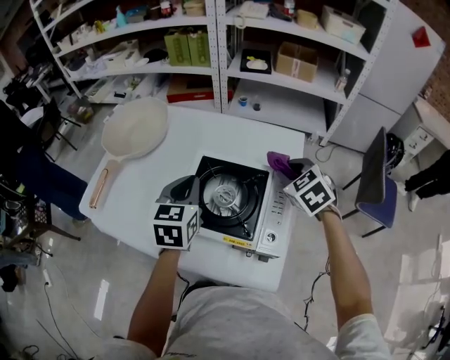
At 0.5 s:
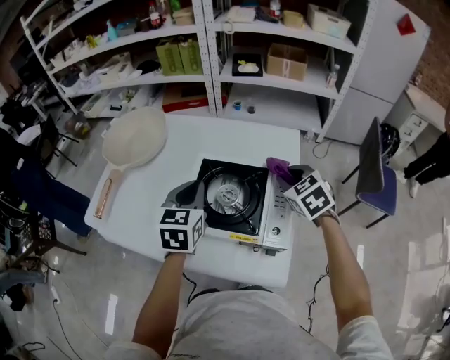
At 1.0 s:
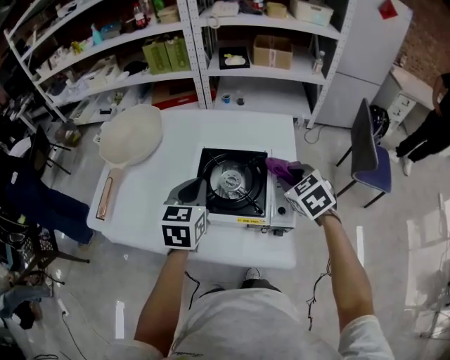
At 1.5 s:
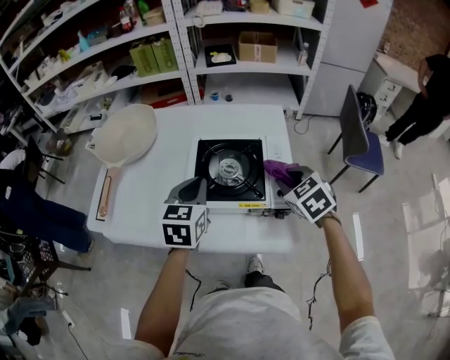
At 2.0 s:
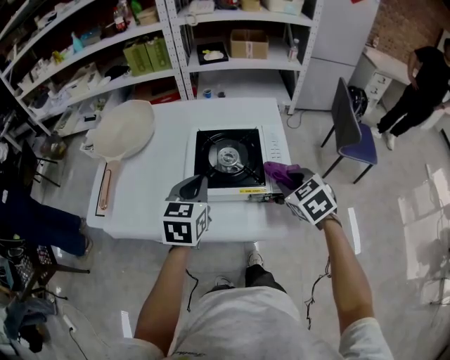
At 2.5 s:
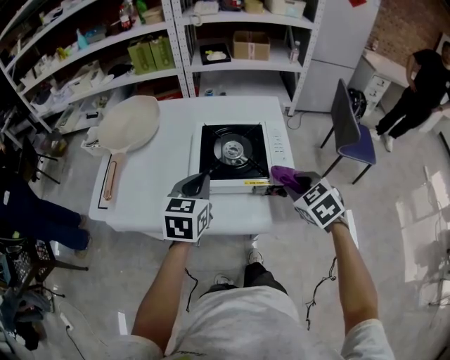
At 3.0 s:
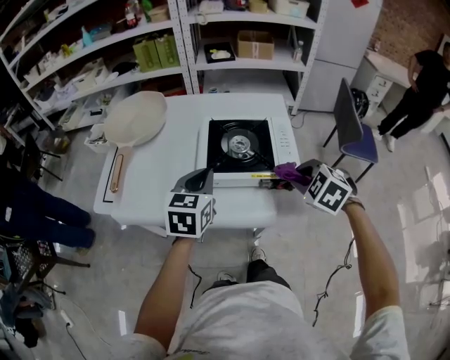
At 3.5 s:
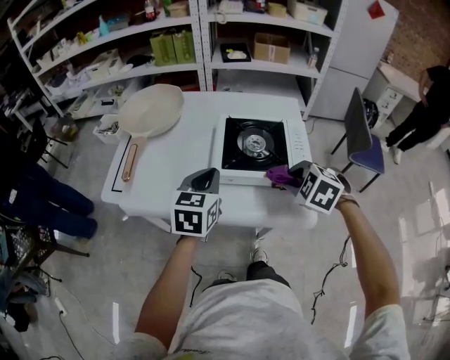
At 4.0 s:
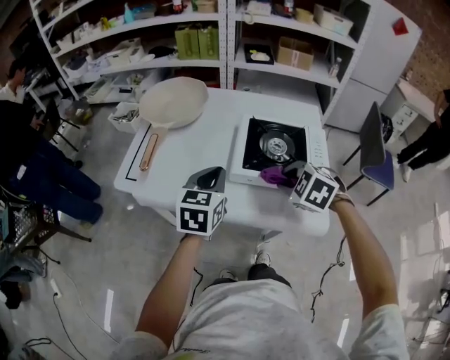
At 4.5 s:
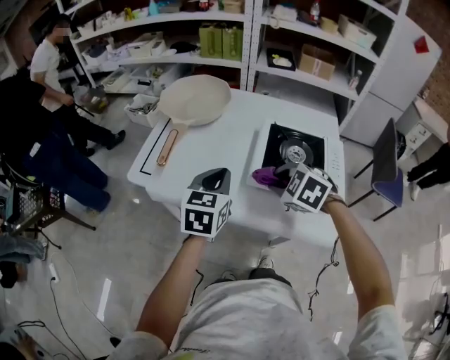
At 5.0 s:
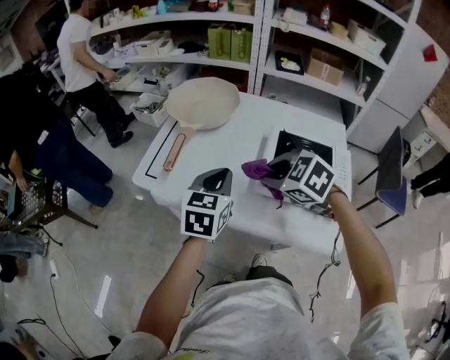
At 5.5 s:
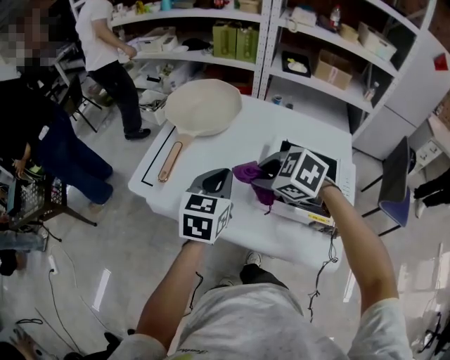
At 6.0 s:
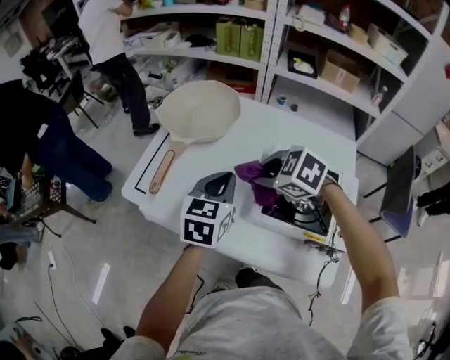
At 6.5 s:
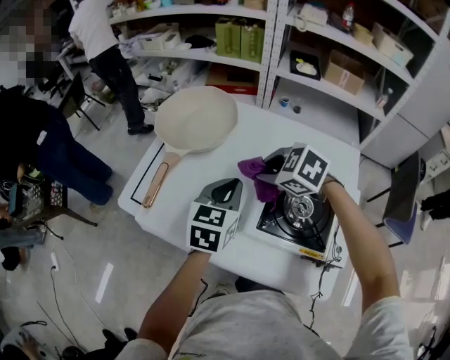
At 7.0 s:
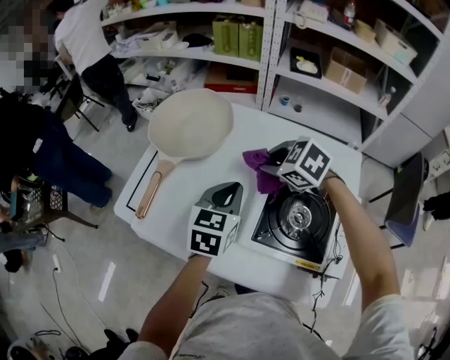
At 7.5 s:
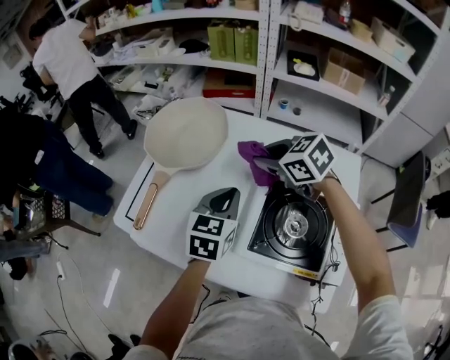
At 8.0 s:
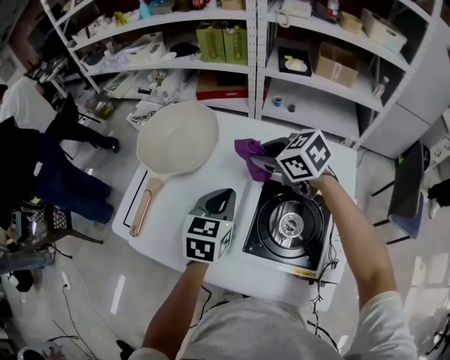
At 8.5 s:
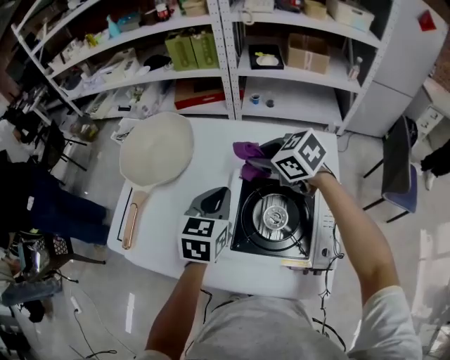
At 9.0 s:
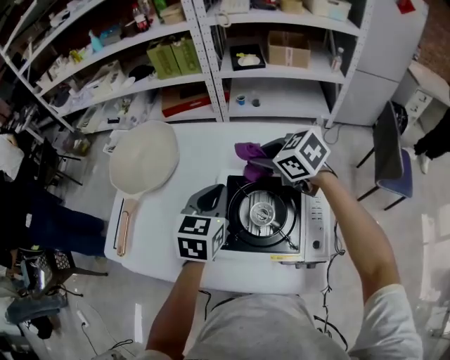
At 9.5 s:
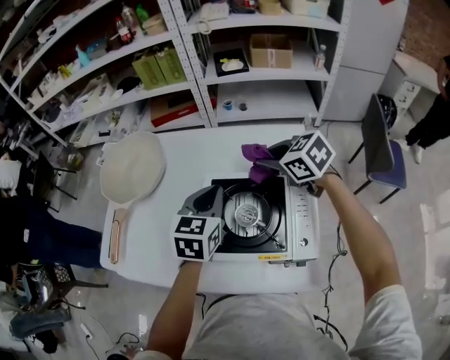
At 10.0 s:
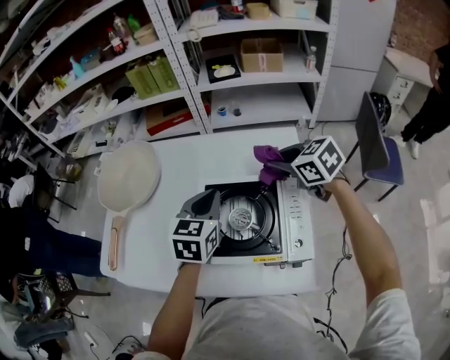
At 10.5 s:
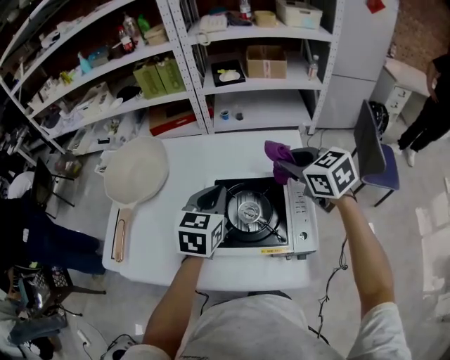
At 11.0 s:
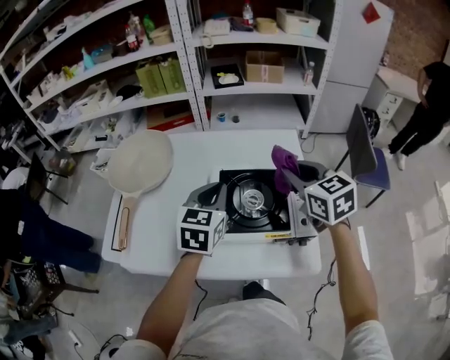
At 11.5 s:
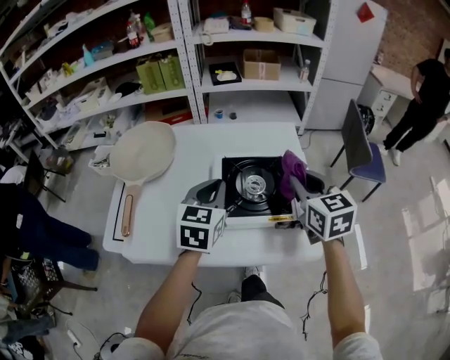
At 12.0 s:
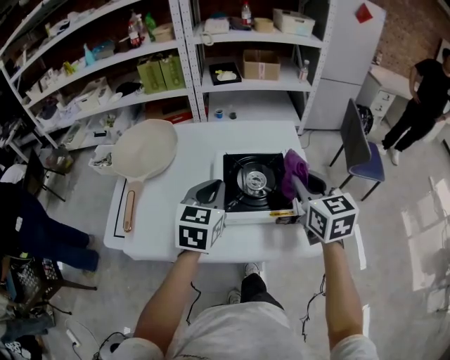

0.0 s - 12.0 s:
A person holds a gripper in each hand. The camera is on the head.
0.0 s - 2.0 s: The left gripper is displaced backward by roughly 10 cm, while the right gripper goes some 20 cm backward.
2.0 s - 4.0 s: Both grippers travel together to the left, some 15 cm. The right gripper rotates approximately 40 degrees.
4.0 s - 6.0 s: The left gripper heads forward, covering roughly 10 cm. The right gripper shifts approximately 20 cm forward and to the left, and turns by about 20 degrees.
6.0 s - 8.0 s: The right gripper moves forward and to the right, approximately 15 cm, and rotates approximately 30 degrees, while the left gripper heads to the right and forward, covering about 10 cm.
8.0 s - 10.0 s: The right gripper goes approximately 25 cm to the right and backward, and swivels about 20 degrees. Meanwhile the left gripper travels to the right by about 10 cm.
10.0 s - 12.0 s: The left gripper is displaced backward and to the left by some 15 cm. The right gripper heads backward and upward, covering approximately 20 cm, and changes its angle by roughly 40 degrees.

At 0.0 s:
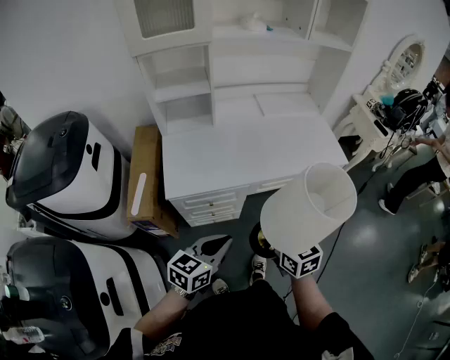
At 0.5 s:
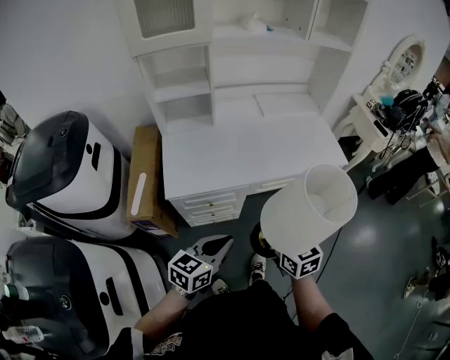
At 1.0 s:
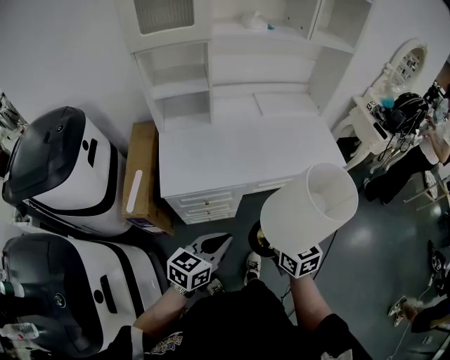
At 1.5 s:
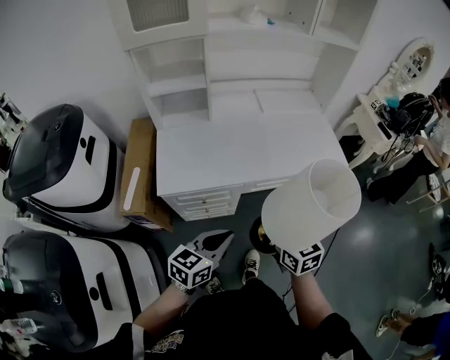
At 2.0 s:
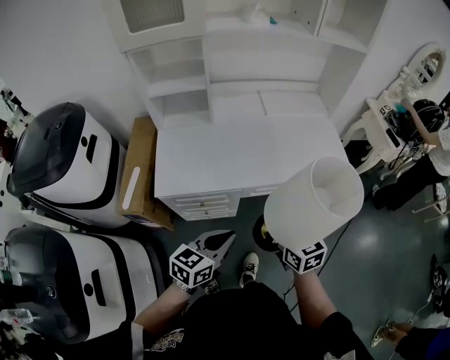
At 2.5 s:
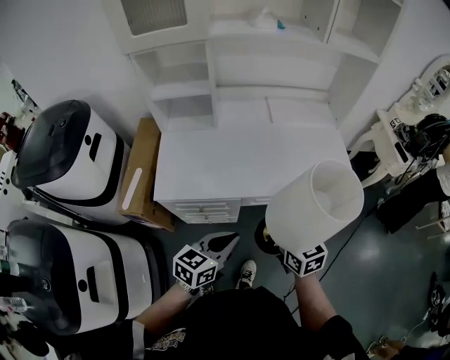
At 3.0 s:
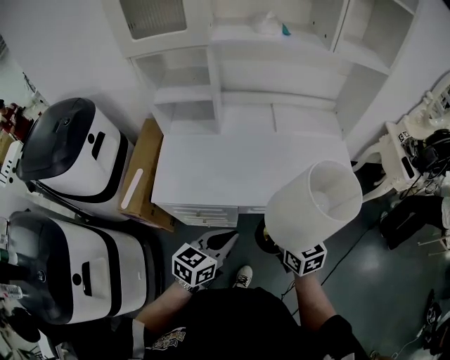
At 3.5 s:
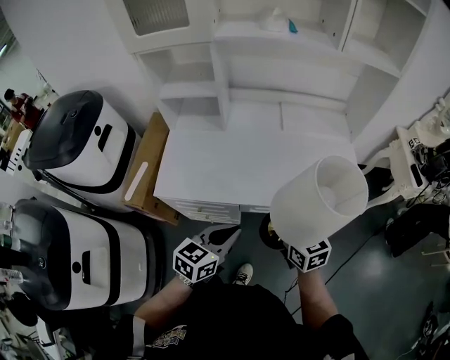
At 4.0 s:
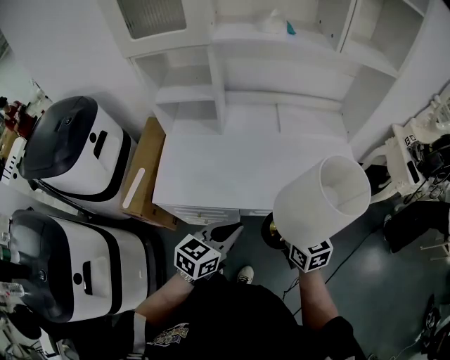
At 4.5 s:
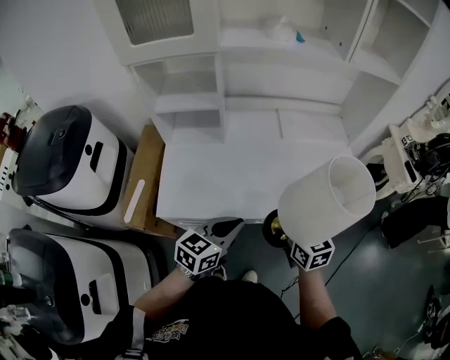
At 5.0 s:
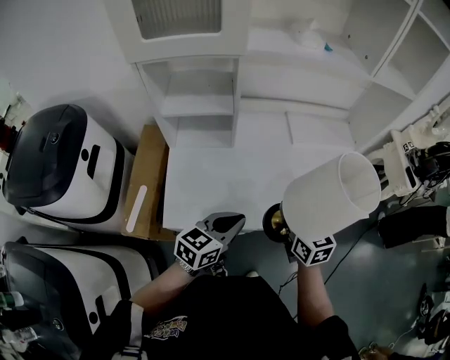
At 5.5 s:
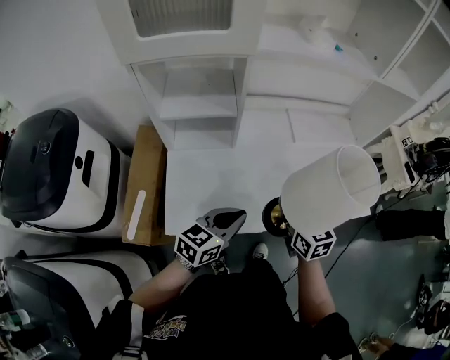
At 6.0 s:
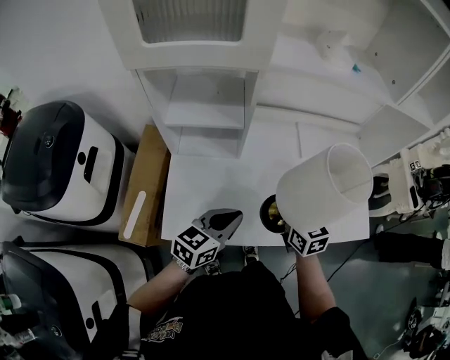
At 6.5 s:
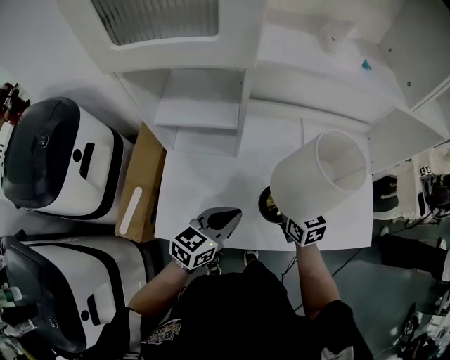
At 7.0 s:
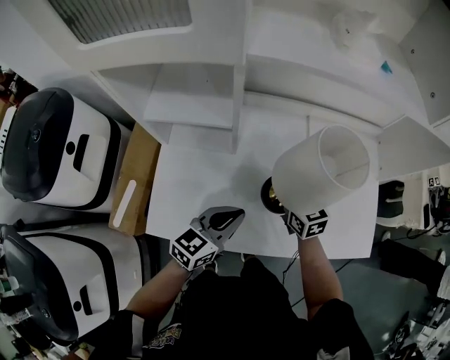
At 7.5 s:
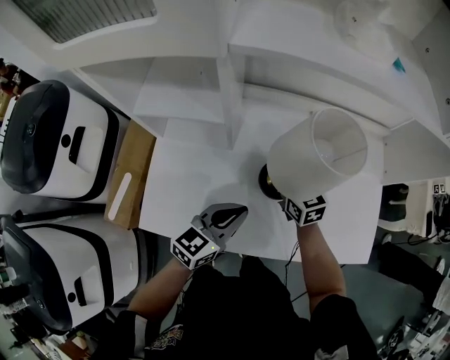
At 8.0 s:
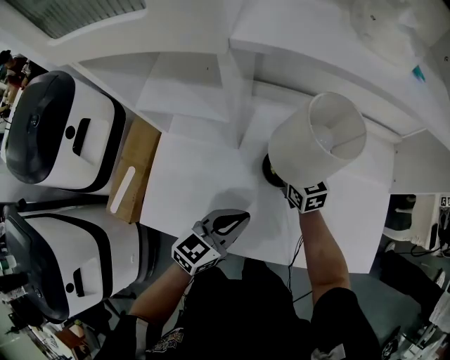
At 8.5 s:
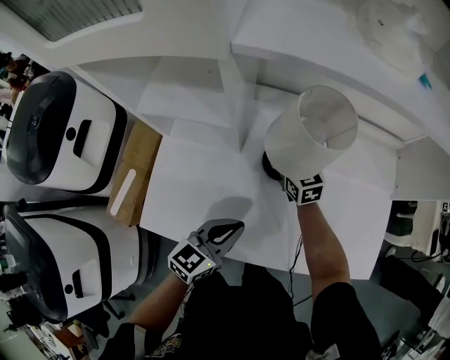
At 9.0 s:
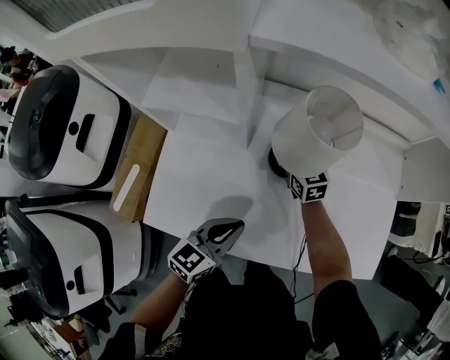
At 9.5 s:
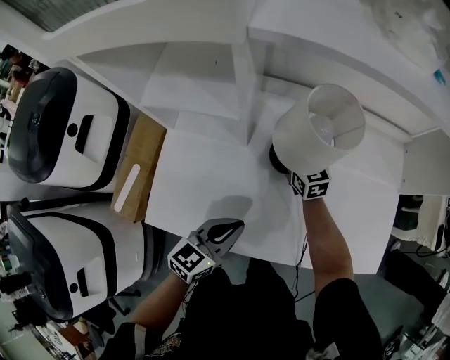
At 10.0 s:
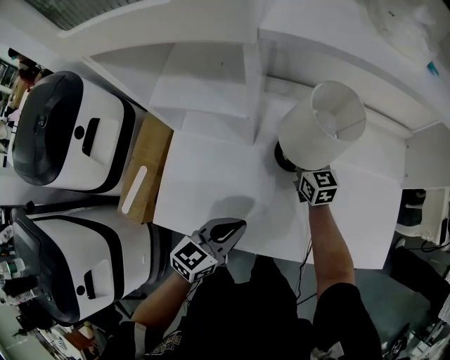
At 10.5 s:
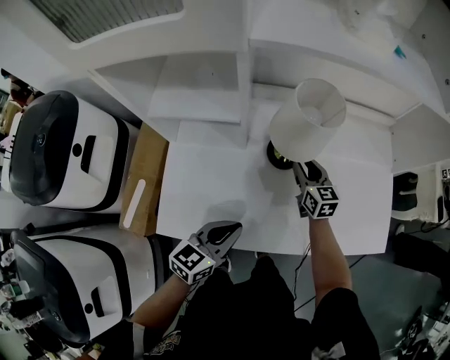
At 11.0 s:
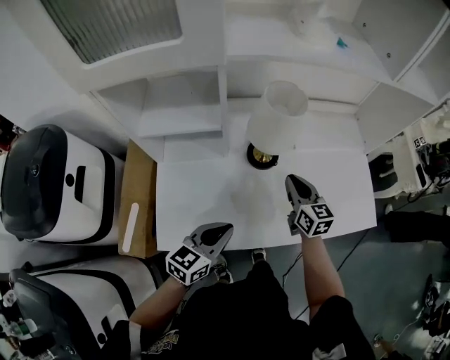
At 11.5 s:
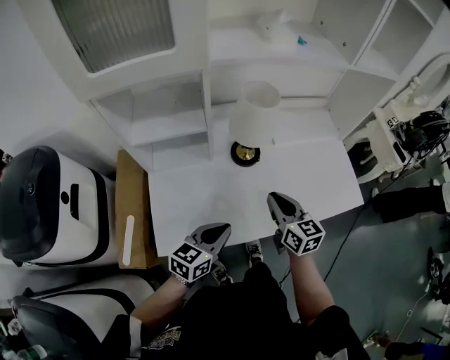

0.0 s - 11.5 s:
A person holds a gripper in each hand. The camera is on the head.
0.0 s - 2.0 s: The left gripper shifts approximately 10 cm to the right and forward. The right gripper travels forward and to the right by some 10 cm.
2.0 s - 4.0 s: The two grippers go some 15 cm forward and to the right.
4.0 s - 6.0 s: The two grippers go approximately 25 cm forward and to the left.
6.0 s - 7.5 s: The right gripper is displaced forward and downward by some 20 cm, while the left gripper goes roughly 10 cm forward and to the right.
7.5 s - 9.5 s: The left gripper shifts by roughly 5 cm. The right gripper shifts roughly 10 cm forward and downward.
9.5 s - 11.5 s: The right gripper shifts some 30 cm backward and upward, and turns by about 30 degrees, while the left gripper goes roughly 10 cm backward.

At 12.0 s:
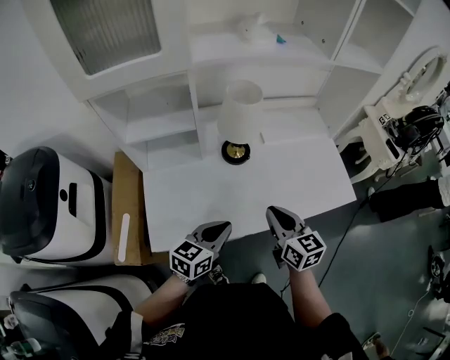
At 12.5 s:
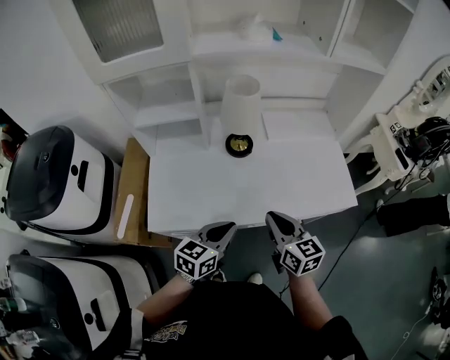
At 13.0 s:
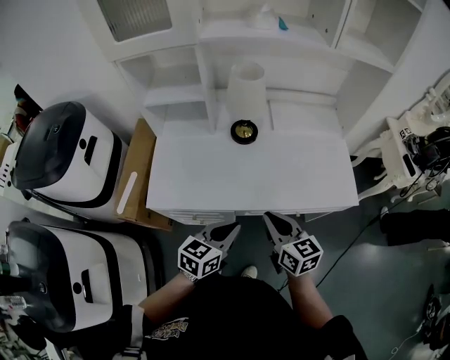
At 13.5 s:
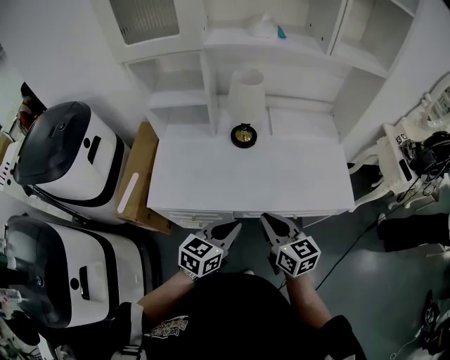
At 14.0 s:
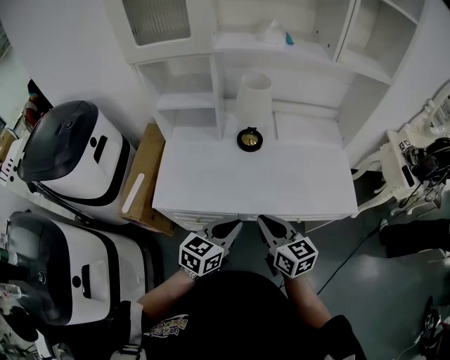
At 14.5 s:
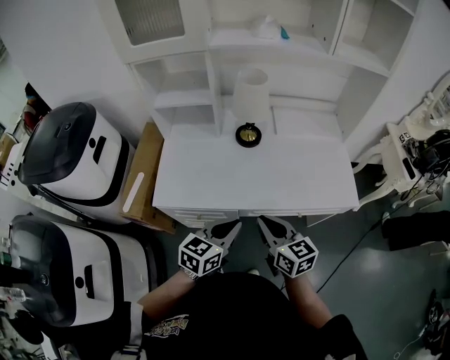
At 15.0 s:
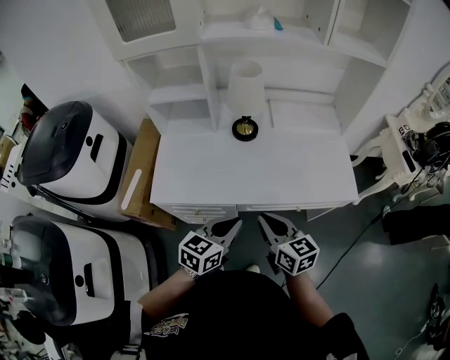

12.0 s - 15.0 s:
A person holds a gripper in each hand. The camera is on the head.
12.0 s - 13.5 s: The right gripper goes some 10 cm backward and to the right, while the left gripper is displaced to the right and backward by approximately 15 cm.
13.5 s - 15.0 s: The grippers stay close to where they were, moving slightly.
